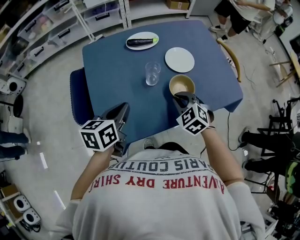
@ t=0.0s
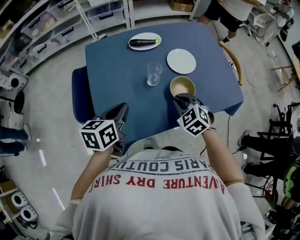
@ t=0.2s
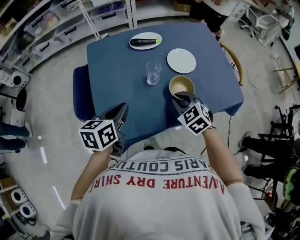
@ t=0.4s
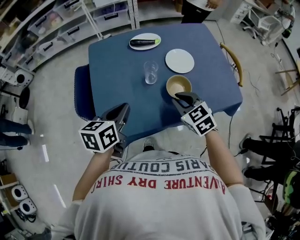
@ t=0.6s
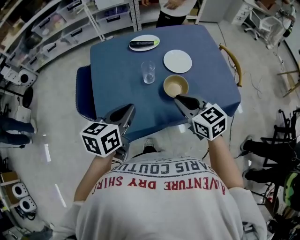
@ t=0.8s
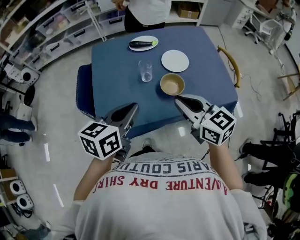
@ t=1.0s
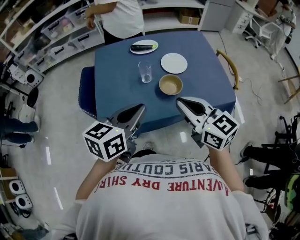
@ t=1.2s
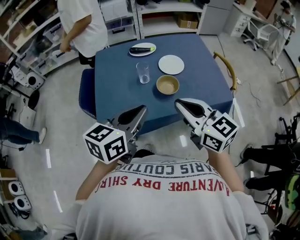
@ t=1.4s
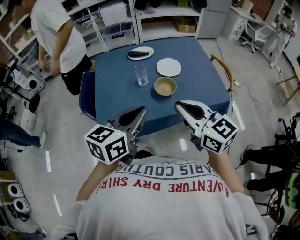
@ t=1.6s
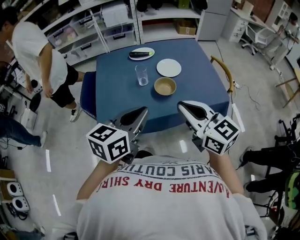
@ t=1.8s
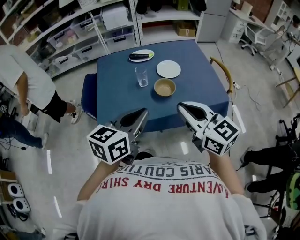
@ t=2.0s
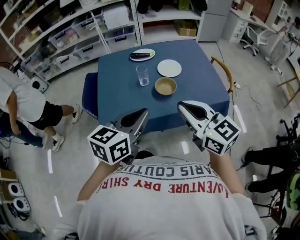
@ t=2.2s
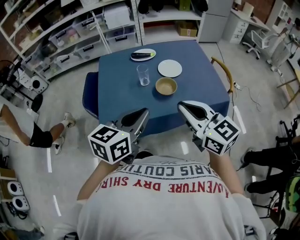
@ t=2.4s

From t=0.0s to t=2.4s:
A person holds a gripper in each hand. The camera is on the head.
From t=0.0s to t=1.2s: The left gripper is displaced upward, to the right and backward by roughly 20 cm; the right gripper heads upward and backward, covering approximately 25 cm, and angles its fingers upward, by some 40 degrees.
From t=1.2s to t=2.4s: The left gripper moves about 5 cm. The right gripper moves backward, about 5 cm.

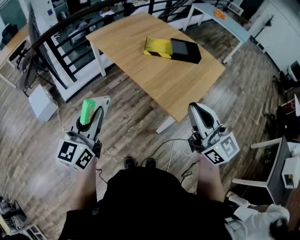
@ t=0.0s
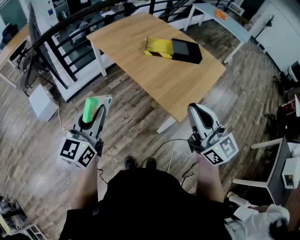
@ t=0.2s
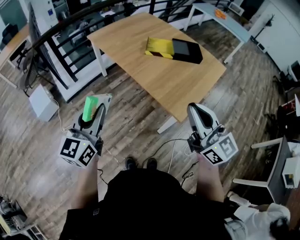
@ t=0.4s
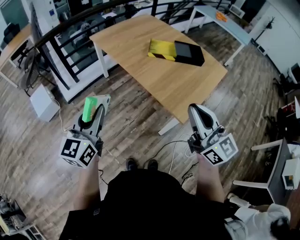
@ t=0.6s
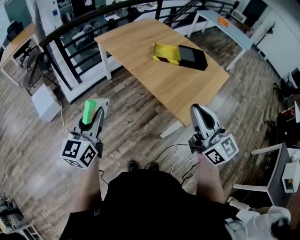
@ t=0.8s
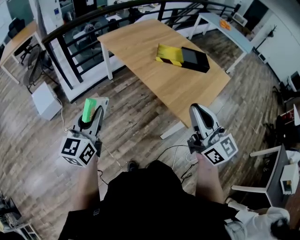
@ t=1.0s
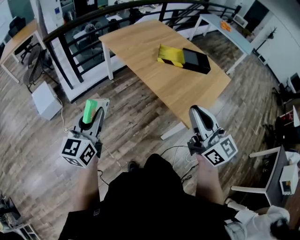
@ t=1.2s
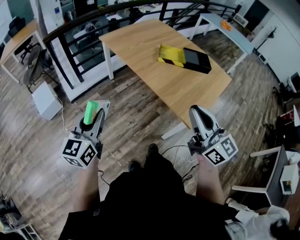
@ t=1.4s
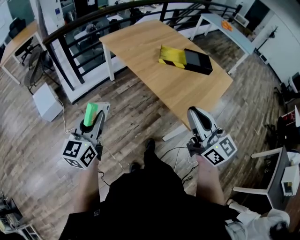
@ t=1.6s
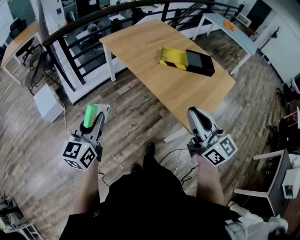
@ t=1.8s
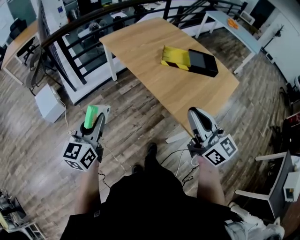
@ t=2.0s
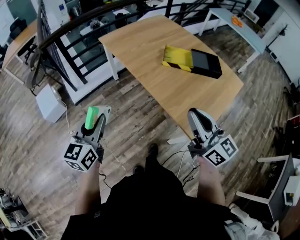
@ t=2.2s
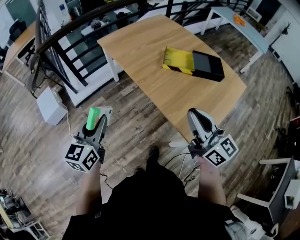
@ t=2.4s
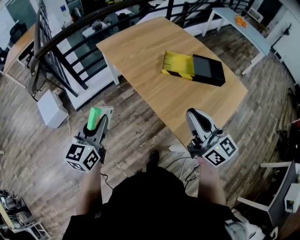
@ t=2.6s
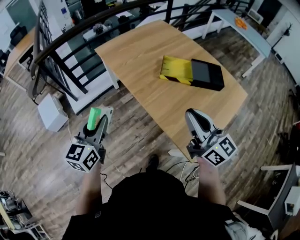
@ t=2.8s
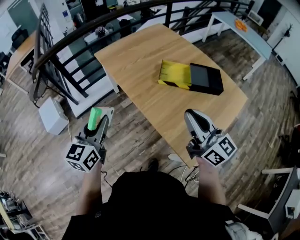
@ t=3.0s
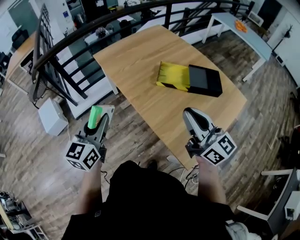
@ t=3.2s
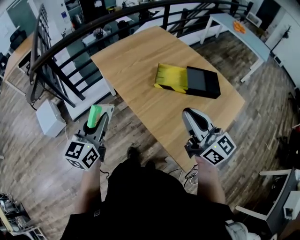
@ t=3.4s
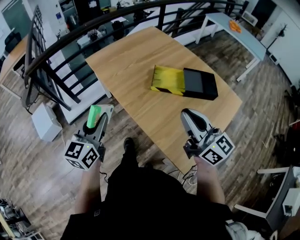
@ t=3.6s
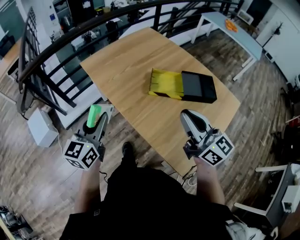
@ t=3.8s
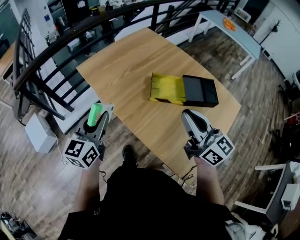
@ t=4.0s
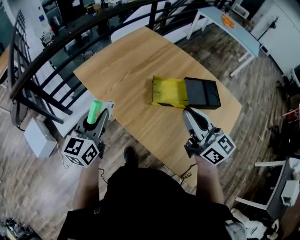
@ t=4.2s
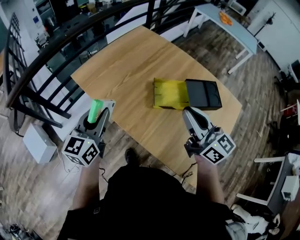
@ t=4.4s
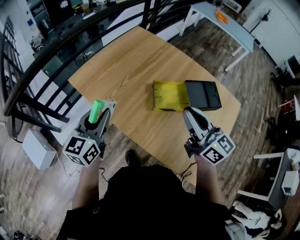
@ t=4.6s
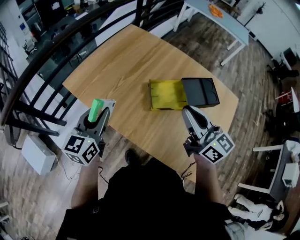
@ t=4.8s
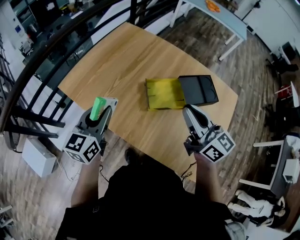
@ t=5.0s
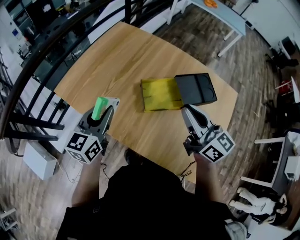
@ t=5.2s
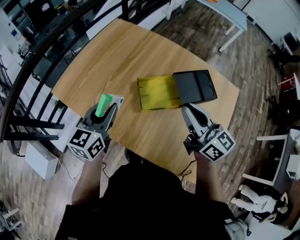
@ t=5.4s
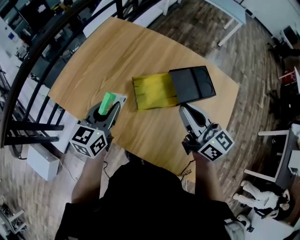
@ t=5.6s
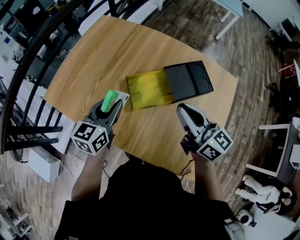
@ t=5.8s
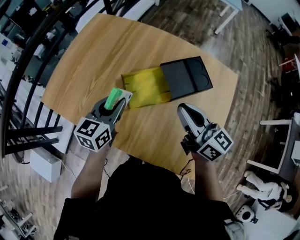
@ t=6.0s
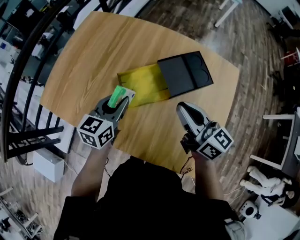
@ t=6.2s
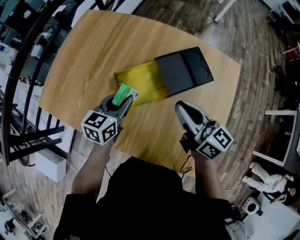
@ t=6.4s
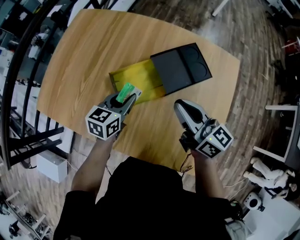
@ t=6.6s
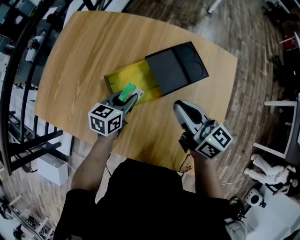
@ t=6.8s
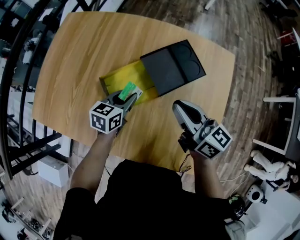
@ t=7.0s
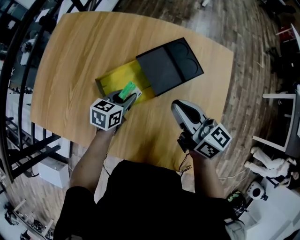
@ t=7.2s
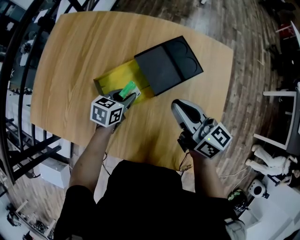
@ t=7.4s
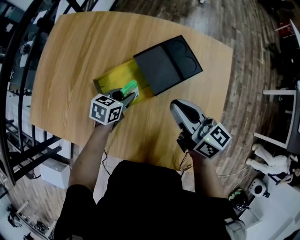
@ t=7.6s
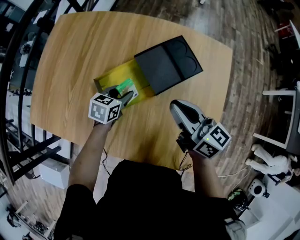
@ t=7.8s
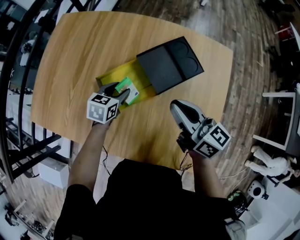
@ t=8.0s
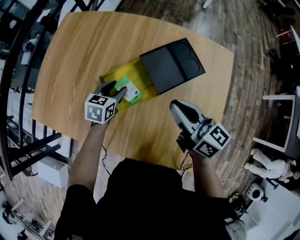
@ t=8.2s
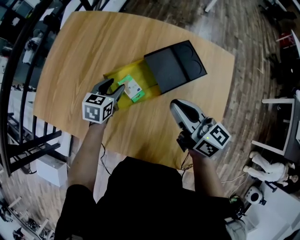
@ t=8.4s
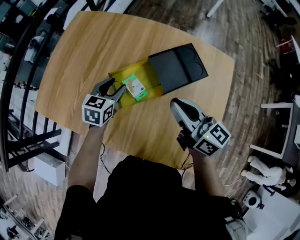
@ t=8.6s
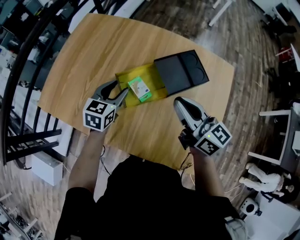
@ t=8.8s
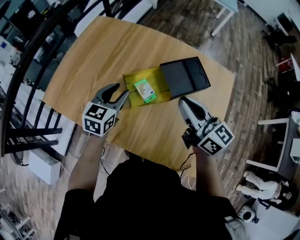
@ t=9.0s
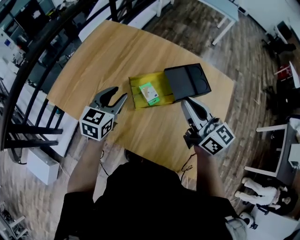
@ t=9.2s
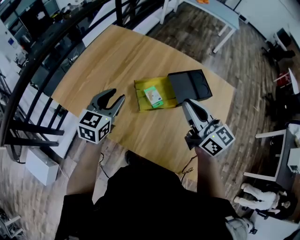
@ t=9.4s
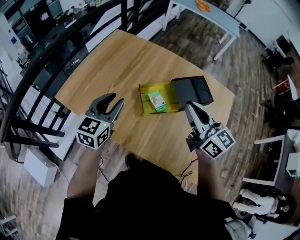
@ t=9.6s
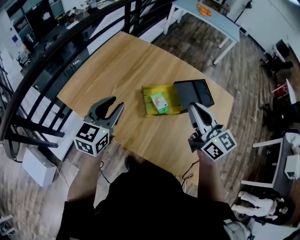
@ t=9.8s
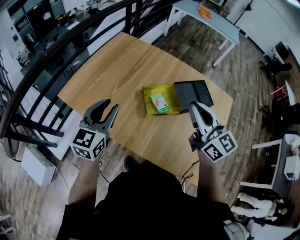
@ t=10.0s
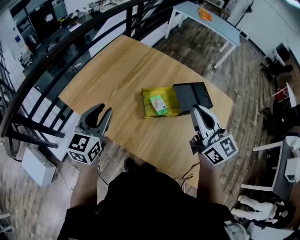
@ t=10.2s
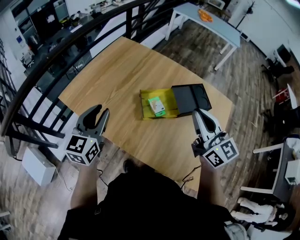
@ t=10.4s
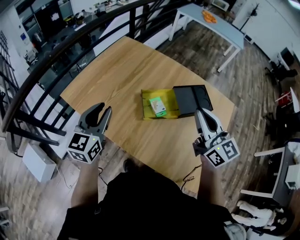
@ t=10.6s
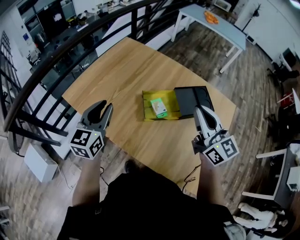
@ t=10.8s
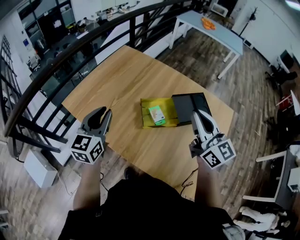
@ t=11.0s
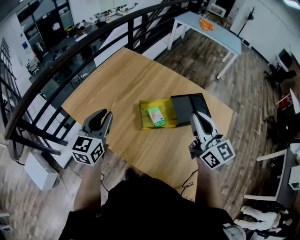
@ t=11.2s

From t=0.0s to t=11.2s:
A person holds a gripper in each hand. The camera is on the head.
From t=0.0s to t=1.6s: The grippers both shift to the left by approximately 10 cm.
From t=1.6s to t=3.2s: The two grippers go roughly 25 cm forward and to the right.
From t=3.2s to t=4.8s: Both grippers move forward, about 30 cm.
From t=4.8s to t=6.4s: The right gripper heads to the right, downward and forward, covering roughly 20 cm. Meanwhile the left gripper goes approximately 30 cm to the right, downward and forward, and turns by roughly 30 degrees.
From t=6.4s to t=8.0s: The right gripper moves some 5 cm. The left gripper shifts approximately 15 cm downward and forward, rotates roughly 20 degrees, and opens its fingers.
From t=8.0s to t=9.6s: The left gripper travels upward, to the left and backward by approximately 35 cm, and rotates roughly 40 degrees; the right gripper heads upward, to the left and backward, covering approximately 20 cm, and swivels roughly 20 degrees.
From t=9.6s to t=11.2s: The right gripper moves about 5 cm; the left gripper shifts by roughly 5 cm.

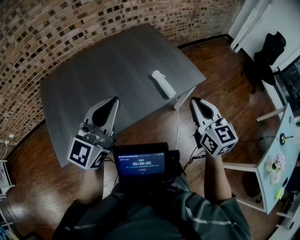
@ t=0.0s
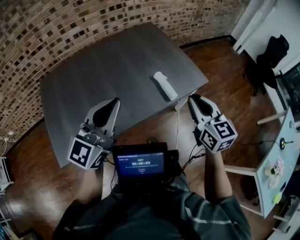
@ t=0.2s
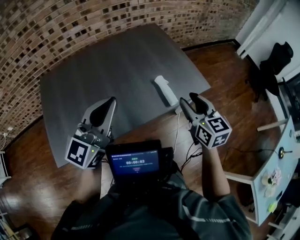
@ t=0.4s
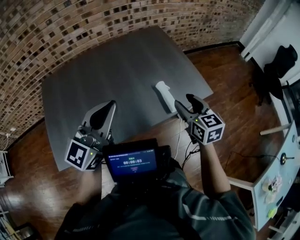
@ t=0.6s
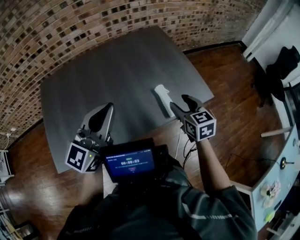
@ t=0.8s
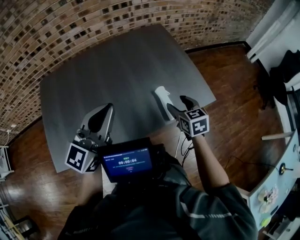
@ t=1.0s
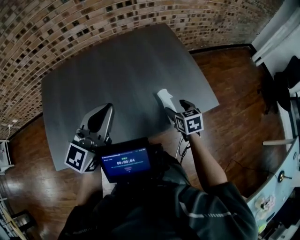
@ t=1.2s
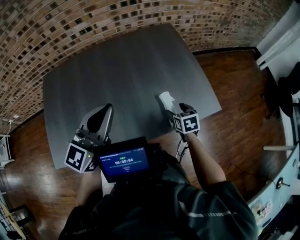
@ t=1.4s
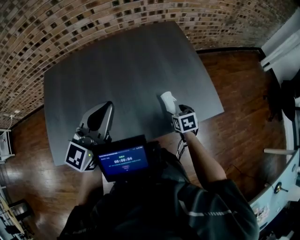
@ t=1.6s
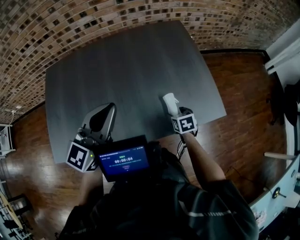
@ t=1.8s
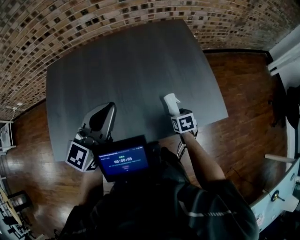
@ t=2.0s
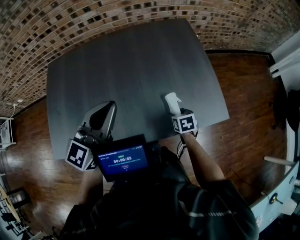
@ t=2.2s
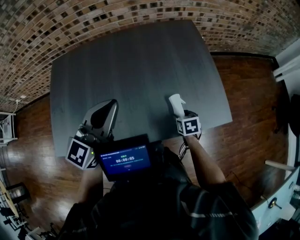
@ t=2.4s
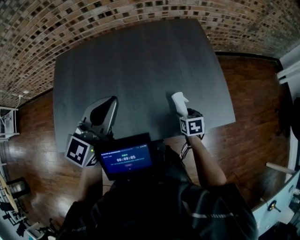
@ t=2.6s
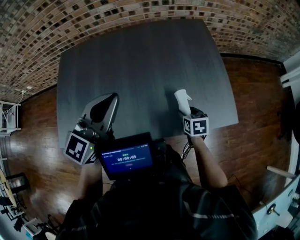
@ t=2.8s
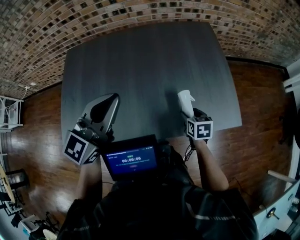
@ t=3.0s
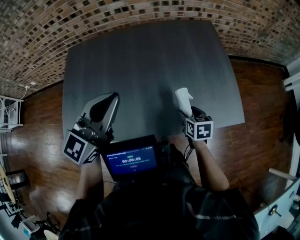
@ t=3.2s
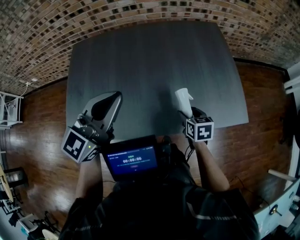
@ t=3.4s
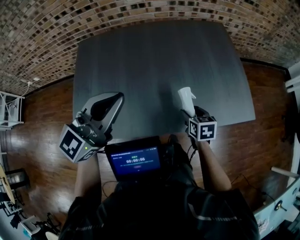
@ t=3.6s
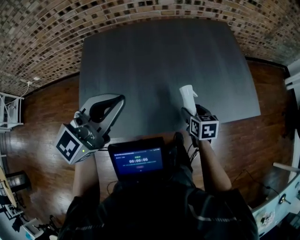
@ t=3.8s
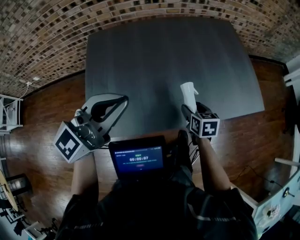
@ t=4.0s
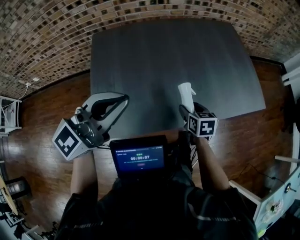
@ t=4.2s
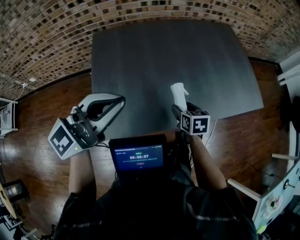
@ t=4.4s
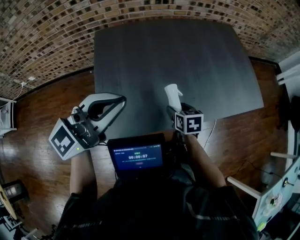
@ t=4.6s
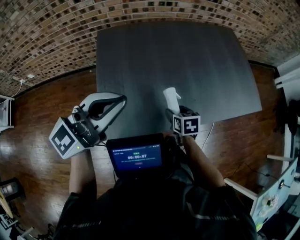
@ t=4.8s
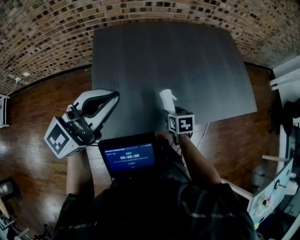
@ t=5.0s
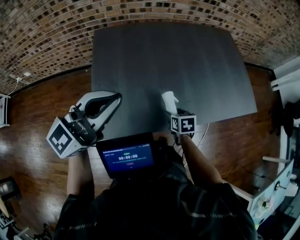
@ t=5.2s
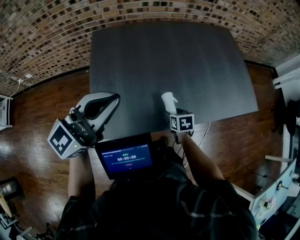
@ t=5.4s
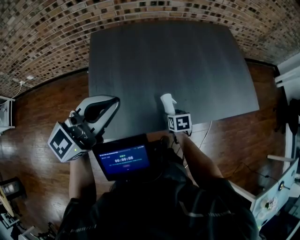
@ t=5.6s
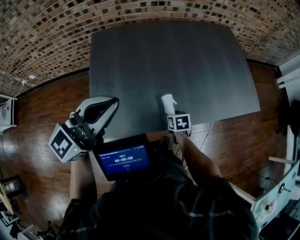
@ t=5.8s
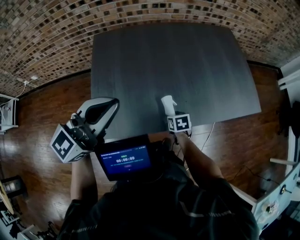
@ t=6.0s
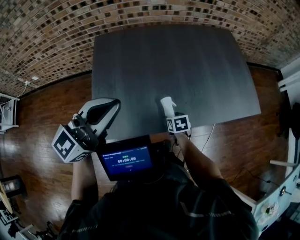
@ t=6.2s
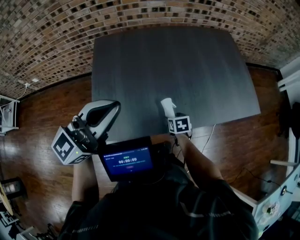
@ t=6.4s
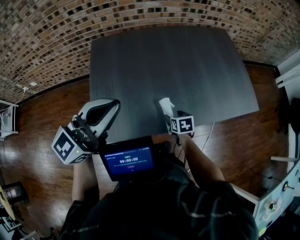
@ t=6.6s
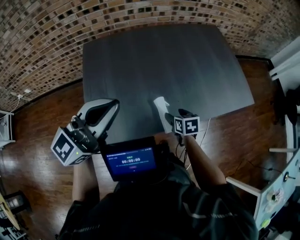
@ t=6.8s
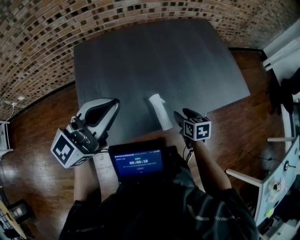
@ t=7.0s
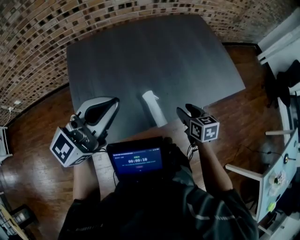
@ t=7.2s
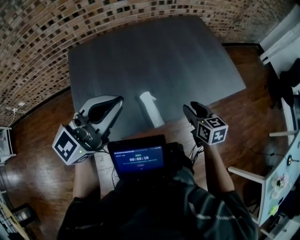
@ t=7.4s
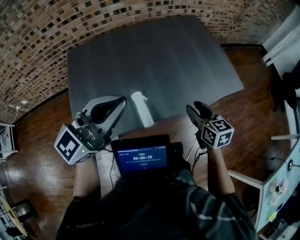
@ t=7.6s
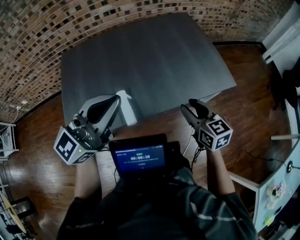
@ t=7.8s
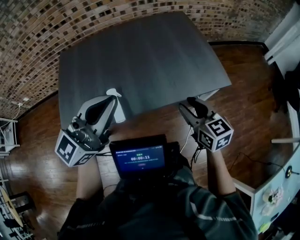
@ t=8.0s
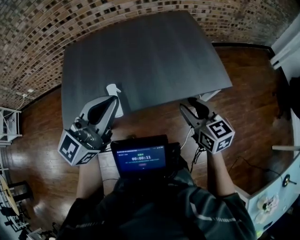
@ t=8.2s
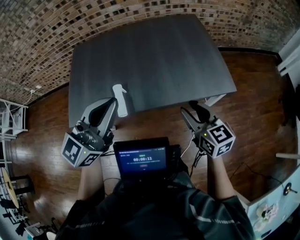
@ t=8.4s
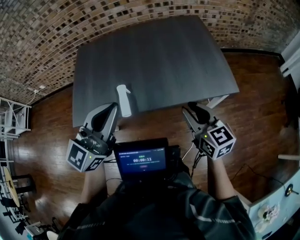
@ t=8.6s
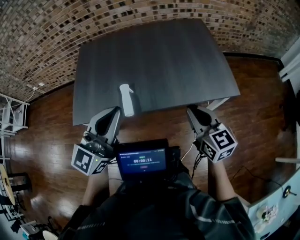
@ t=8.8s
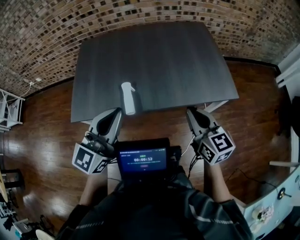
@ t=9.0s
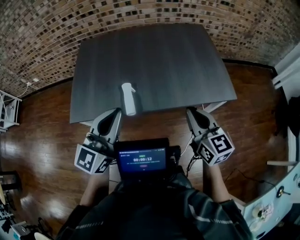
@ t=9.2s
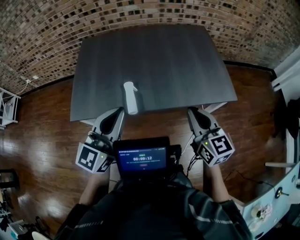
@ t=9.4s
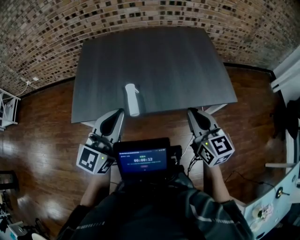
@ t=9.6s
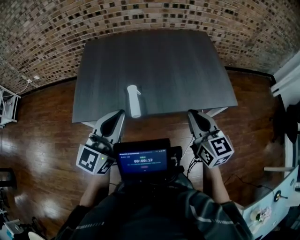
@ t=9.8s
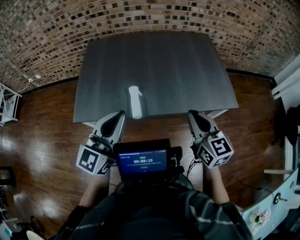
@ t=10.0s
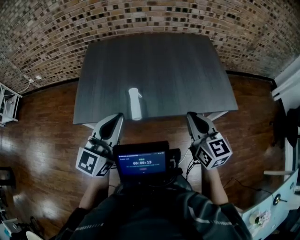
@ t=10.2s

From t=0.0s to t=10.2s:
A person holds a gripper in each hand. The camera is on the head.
From t=0.0s to t=1.4s: The left gripper moves forward, about 15 cm. The right gripper travels downward and forward by roughly 40 cm, angles its fingers downward, by roughly 40 degrees, and opens.
From t=1.4s to t=3.0s: The right gripper goes downward and returns, roughly 10 cm each way.
From t=3.0s to t=4.4s: The right gripper travels to the left by roughly 35 cm, while the left gripper goes approximately 35 cm to the left and backward, and rotates roughly 30 degrees.
From t=4.4s to t=5.8s: The right gripper goes some 10 cm downward.
From t=5.8s to t=7.2s: The right gripper goes some 20 cm upward and to the right, and swivels about 30 degrees.
From t=7.2s to t=8.8s: The left gripper travels to the right by about 25 cm, and rotates approximately 30 degrees, while the right gripper shifts some 25 cm to the right and upward, changes its angle by roughly 30 degrees, and closes.
From t=8.8s to t=10.2s: Both grippers move to the left, roughly 10 cm.
